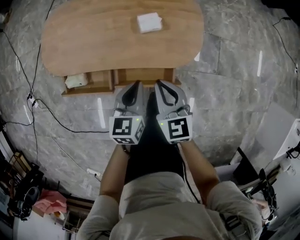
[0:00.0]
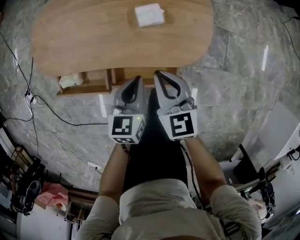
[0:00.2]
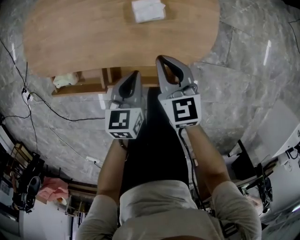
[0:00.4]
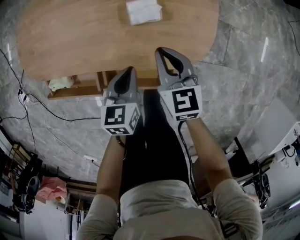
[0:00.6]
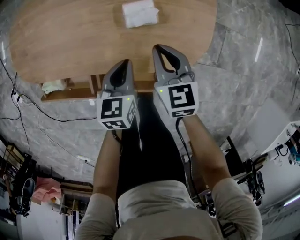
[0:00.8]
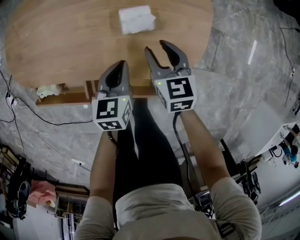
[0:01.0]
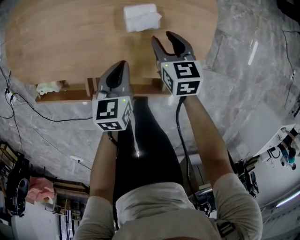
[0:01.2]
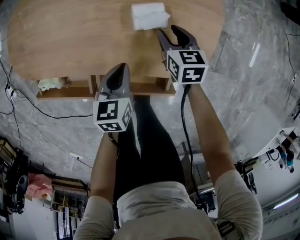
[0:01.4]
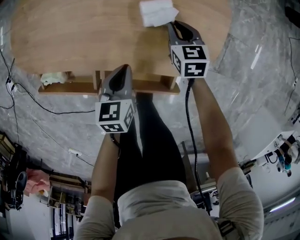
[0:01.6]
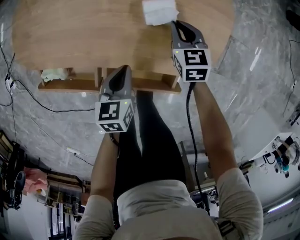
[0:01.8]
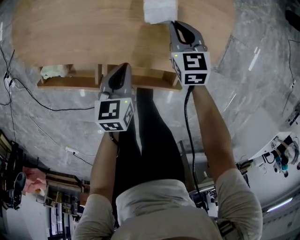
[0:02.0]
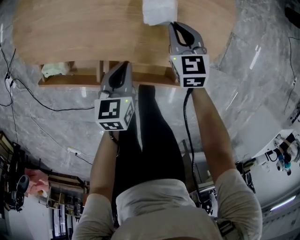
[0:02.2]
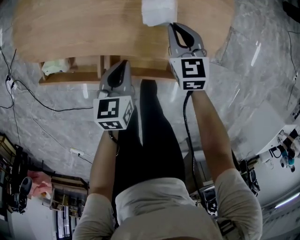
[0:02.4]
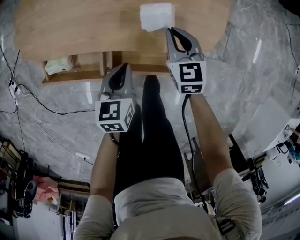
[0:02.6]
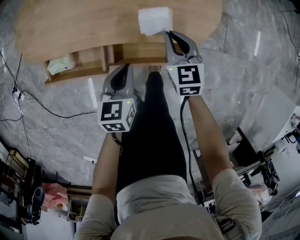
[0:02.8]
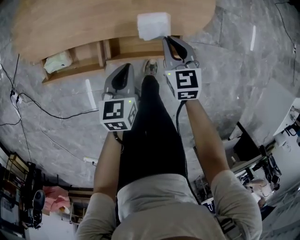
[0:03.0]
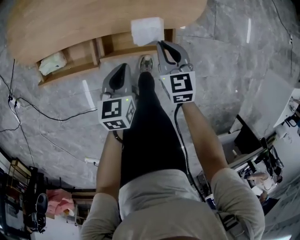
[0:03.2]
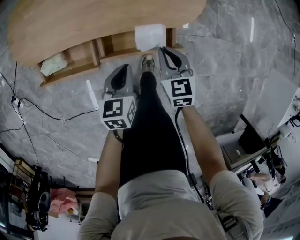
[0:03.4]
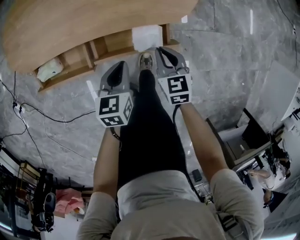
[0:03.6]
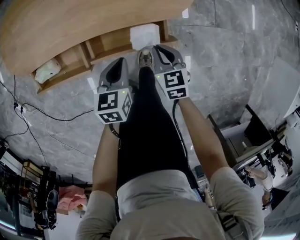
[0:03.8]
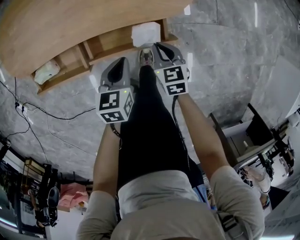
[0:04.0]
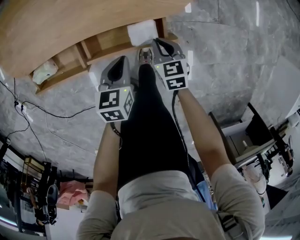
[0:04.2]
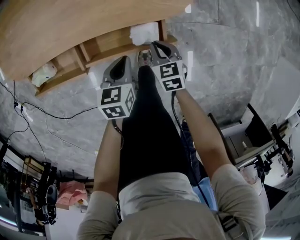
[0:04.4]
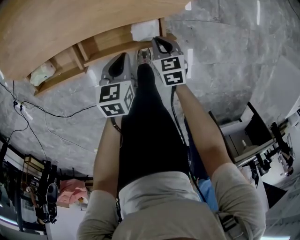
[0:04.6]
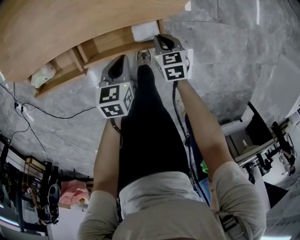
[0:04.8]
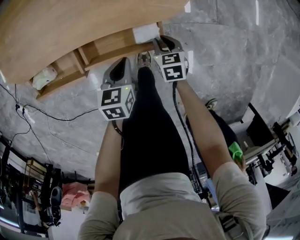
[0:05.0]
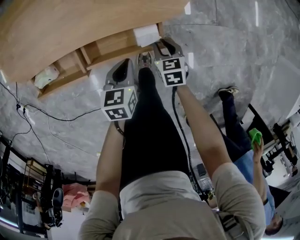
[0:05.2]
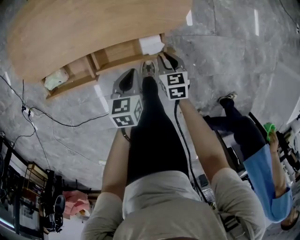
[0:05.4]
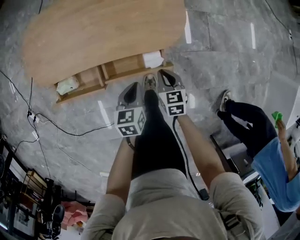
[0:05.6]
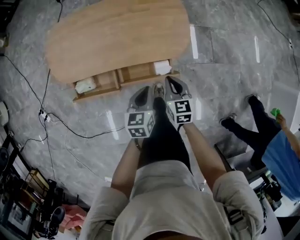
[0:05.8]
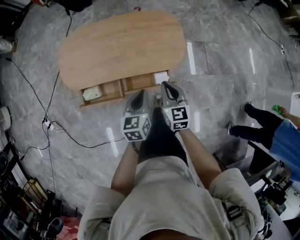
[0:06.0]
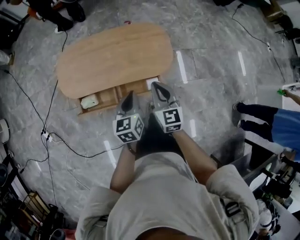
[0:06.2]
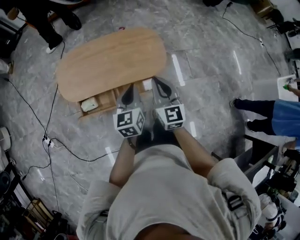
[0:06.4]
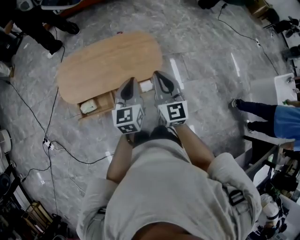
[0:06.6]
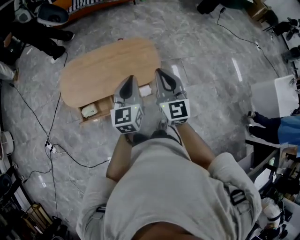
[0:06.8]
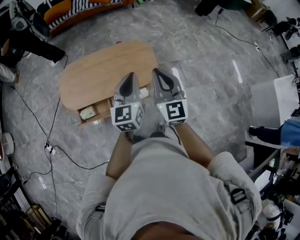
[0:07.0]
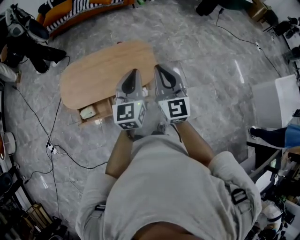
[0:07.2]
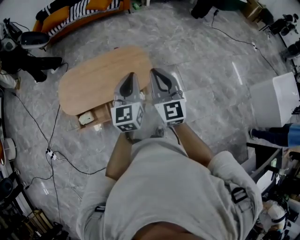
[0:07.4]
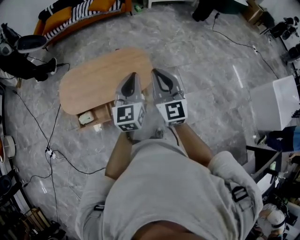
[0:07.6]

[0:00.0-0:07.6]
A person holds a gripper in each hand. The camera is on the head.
0:00.0 to 0:01.6: The left gripper is displaced downward and forward by approximately 20 cm. The right gripper moves downward and forward, about 35 cm, and opens and closes again.
0:01.6 to 0:03.0: The right gripper goes some 20 cm backward and upward. The left gripper goes some 15 cm backward.
0:03.0 to 0:04.6: The right gripper heads downward, to the right and backward, covering roughly 20 cm. Meanwhile the left gripper is displaced to the right and downward by some 10 cm.
0:04.6 to 0:06.0: The two grippers go roughly 30 cm upward. The right gripper changes its angle by roughly 30 degrees, and opens and closes again. Meanwhile the left gripper rotates some 20 degrees.
0:06.0 to 0:07.6: The left gripper is displaced upward and to the right by about 30 cm, and rotates roughly 30 degrees, while the right gripper moves upward, some 30 cm, and turns by approximately 30 degrees.

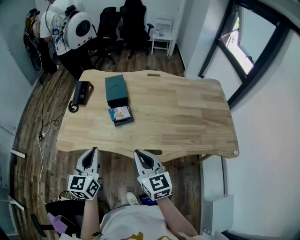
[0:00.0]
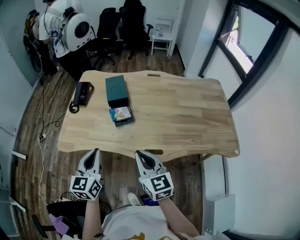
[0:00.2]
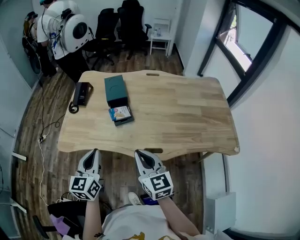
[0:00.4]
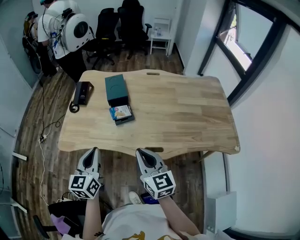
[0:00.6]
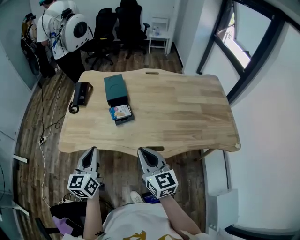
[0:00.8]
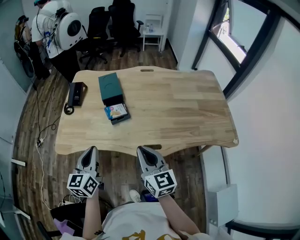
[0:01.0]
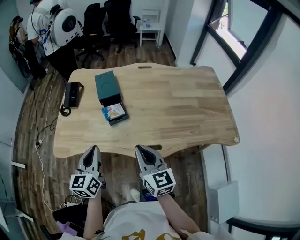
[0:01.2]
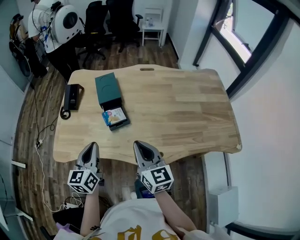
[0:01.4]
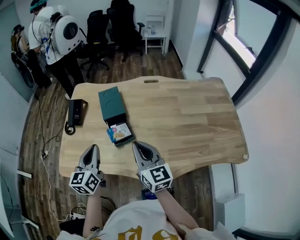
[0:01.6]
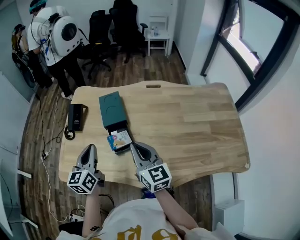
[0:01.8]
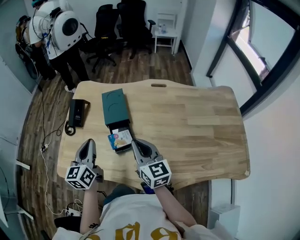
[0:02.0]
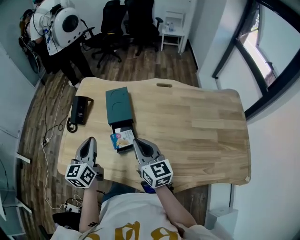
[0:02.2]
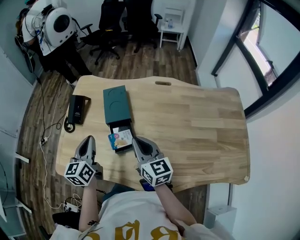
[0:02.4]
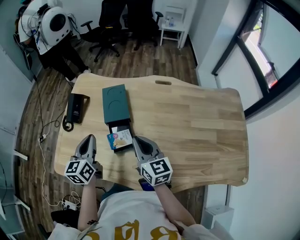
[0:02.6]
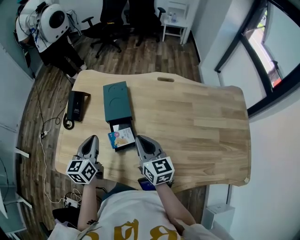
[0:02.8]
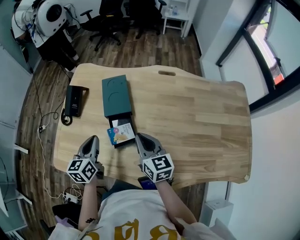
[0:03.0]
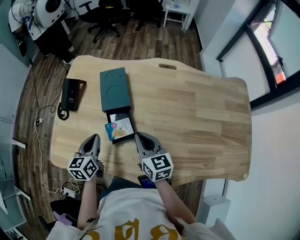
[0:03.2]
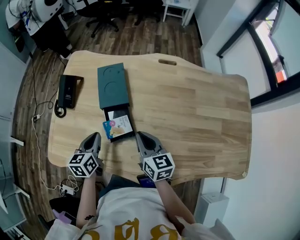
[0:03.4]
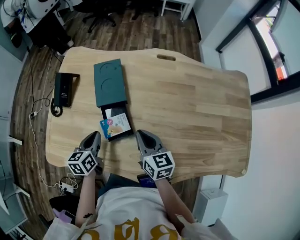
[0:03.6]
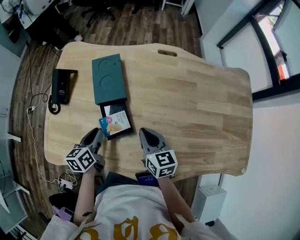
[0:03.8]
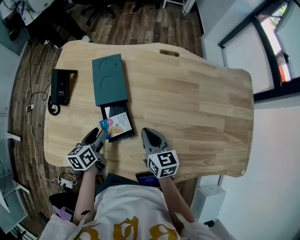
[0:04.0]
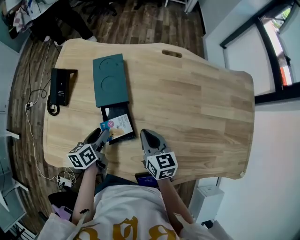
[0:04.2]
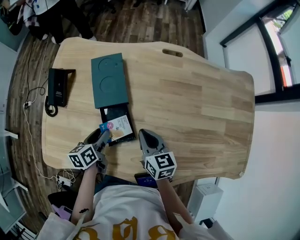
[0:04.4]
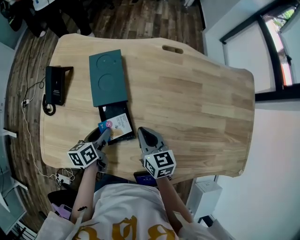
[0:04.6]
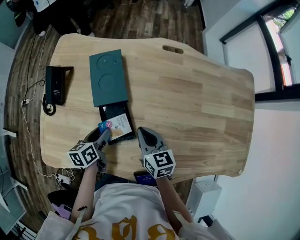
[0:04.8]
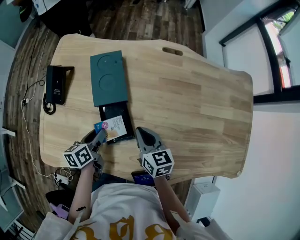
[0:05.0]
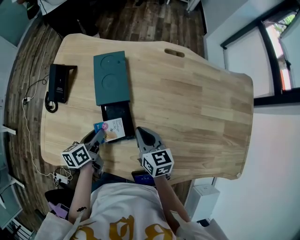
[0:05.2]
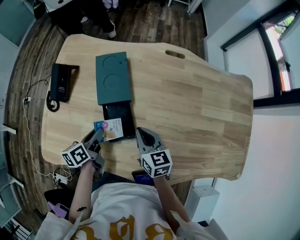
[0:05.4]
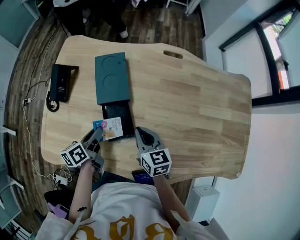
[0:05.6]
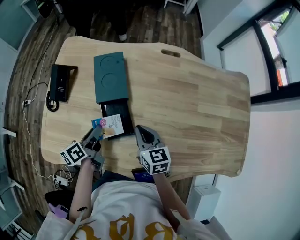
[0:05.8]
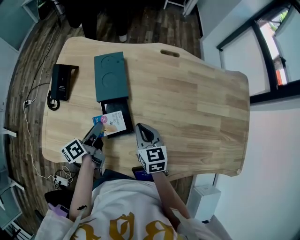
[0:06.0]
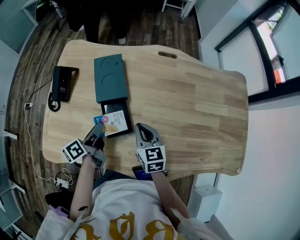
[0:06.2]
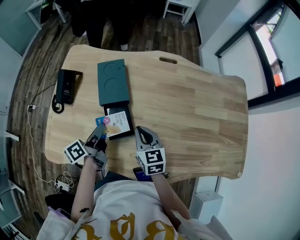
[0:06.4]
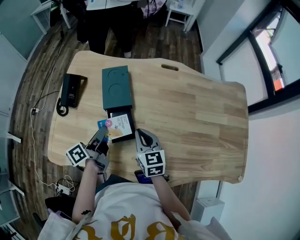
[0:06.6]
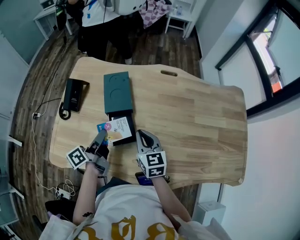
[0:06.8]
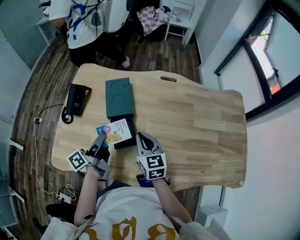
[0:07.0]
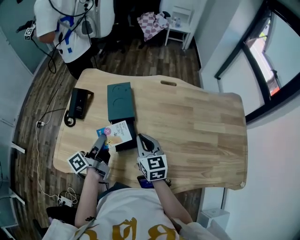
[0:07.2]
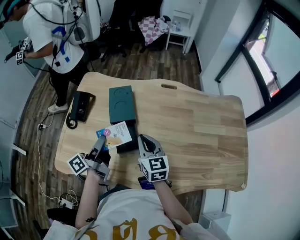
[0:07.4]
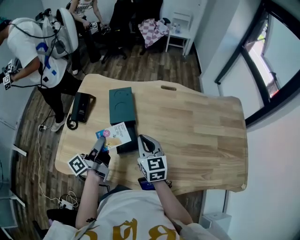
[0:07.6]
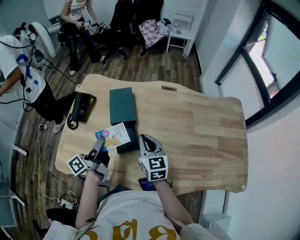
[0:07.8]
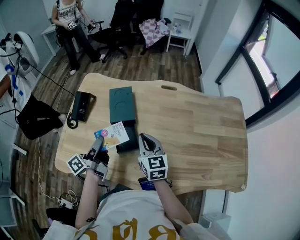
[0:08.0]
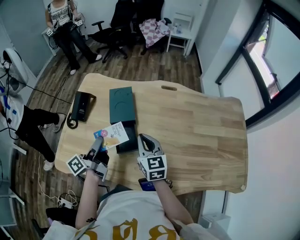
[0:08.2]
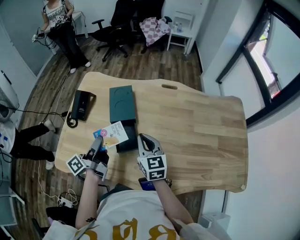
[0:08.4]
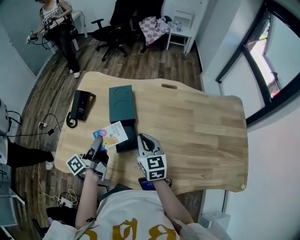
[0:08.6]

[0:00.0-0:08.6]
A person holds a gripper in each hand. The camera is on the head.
0:00.0 to 0:01.4: Both grippers travel together forward, roughly 10 cm.
0:01.4 to 0:02.8: The two grippers go some 20 cm forward.
0:02.8 to 0:04.4: Both grippers travel together downward, about 15 cm. The left gripper rotates some 30 degrees, and opens.
0:04.4 to 0:05.8: The left gripper turns by some 20 degrees, and closes up.
0:05.8 to 0:07.2: Both grippers travel together upward, approximately 10 cm. The left gripper swivels some 30 degrees.
0:07.2 to 0:08.6: The grippers stay close to where they were, moving slightly.

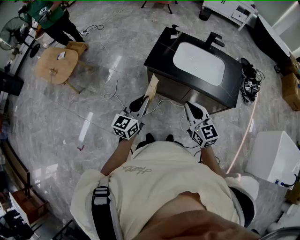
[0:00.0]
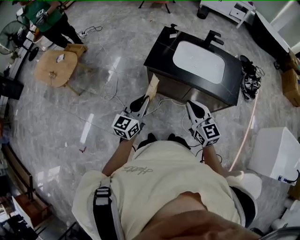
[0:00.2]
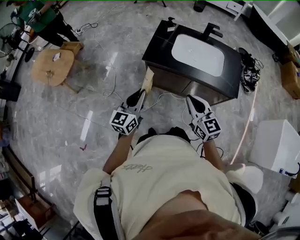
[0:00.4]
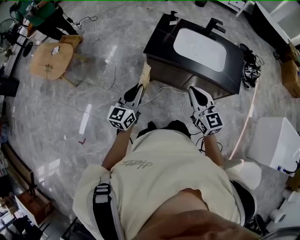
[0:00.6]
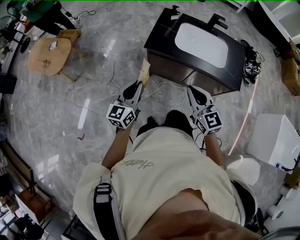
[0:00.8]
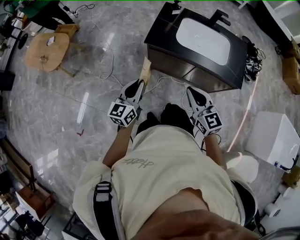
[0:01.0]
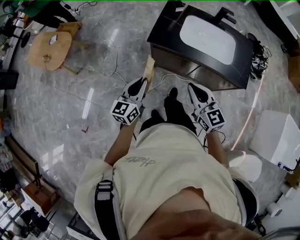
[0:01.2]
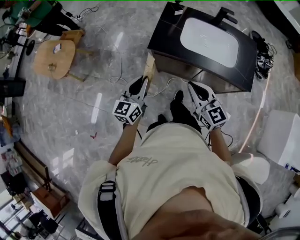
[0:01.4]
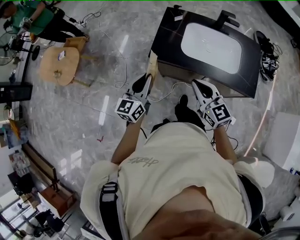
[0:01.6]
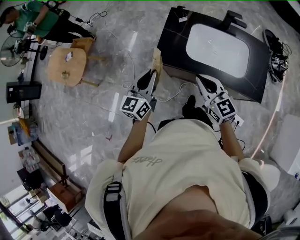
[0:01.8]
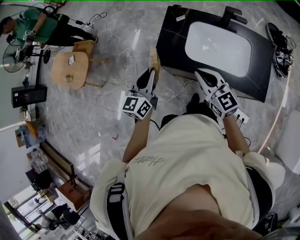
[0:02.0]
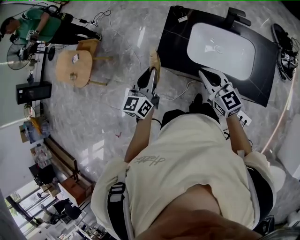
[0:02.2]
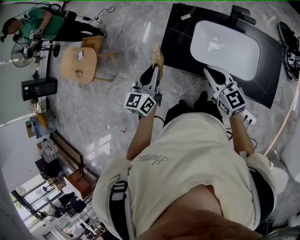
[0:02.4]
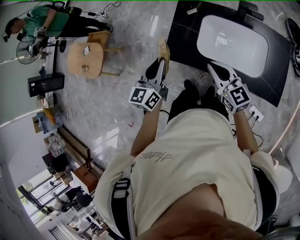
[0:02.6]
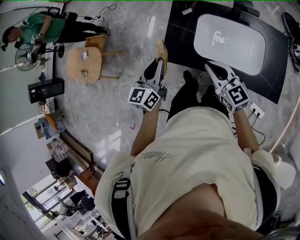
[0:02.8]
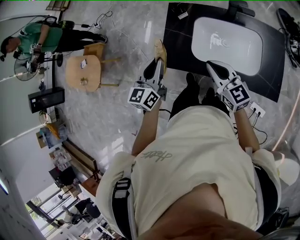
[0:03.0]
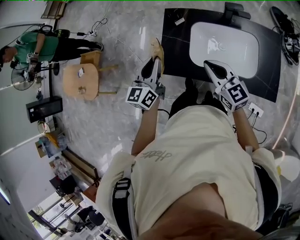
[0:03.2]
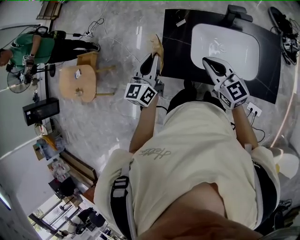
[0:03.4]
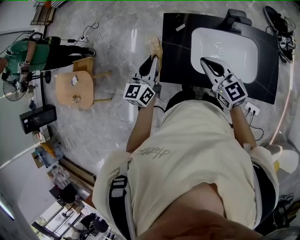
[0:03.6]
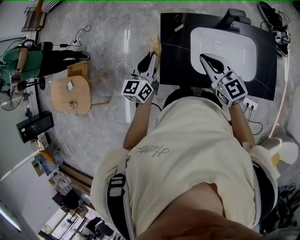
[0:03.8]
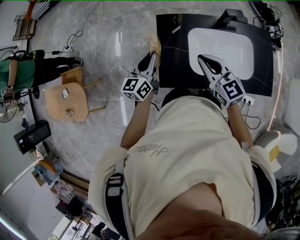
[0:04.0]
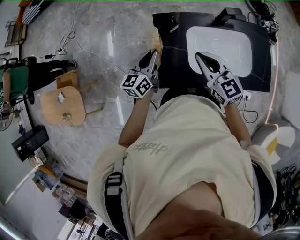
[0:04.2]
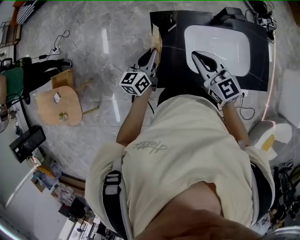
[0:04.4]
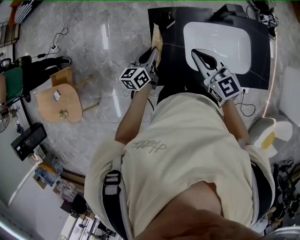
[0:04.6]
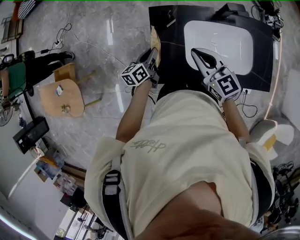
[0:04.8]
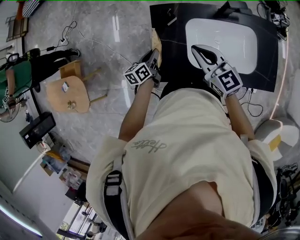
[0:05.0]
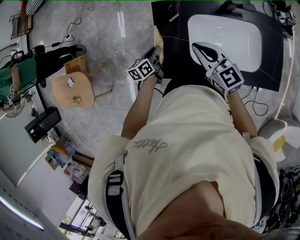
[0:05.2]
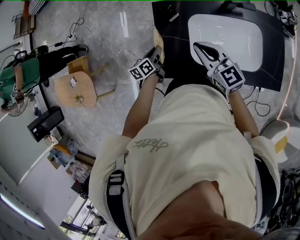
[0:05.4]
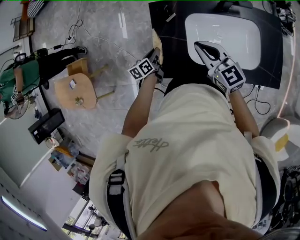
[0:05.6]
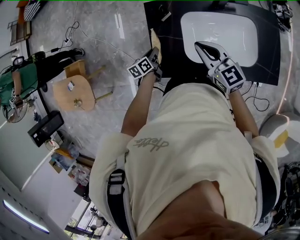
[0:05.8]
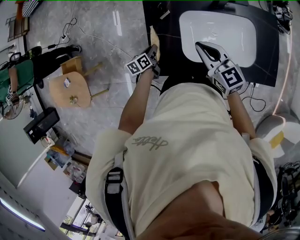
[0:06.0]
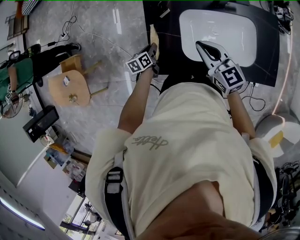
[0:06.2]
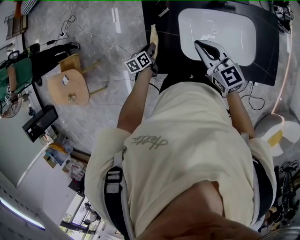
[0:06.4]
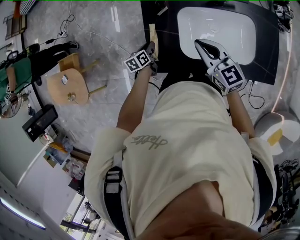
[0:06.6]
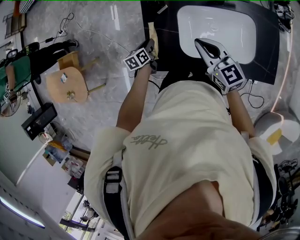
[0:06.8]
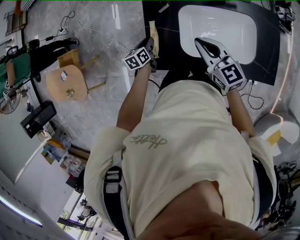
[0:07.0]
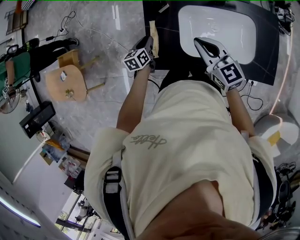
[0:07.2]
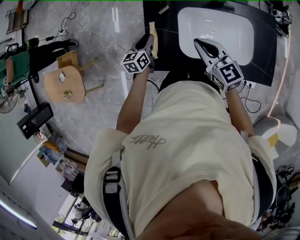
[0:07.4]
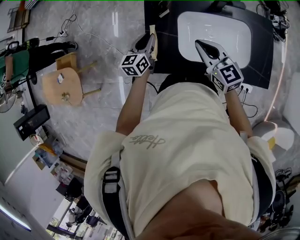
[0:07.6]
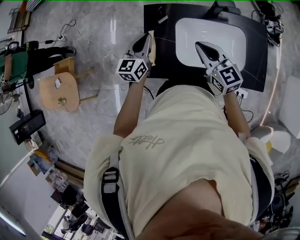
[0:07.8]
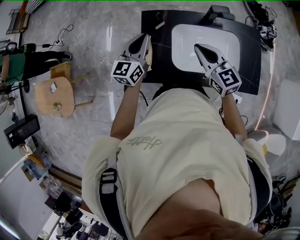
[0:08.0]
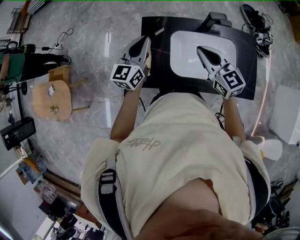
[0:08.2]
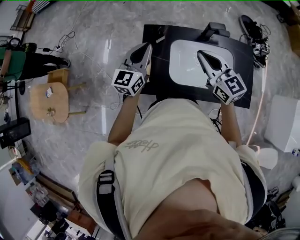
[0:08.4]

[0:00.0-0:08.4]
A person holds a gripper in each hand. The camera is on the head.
0:00.0 to 0:01.4: The grippers both shift forward by about 10 cm.
0:01.4 to 0:02.8: The two grippers go some 25 cm forward and to the right.
0:02.8 to 0:04.2: The left gripper shifts some 25 cm forward, and turns by some 30 degrees; the right gripper goes some 20 cm forward and to the left, and turns by approximately 20 degrees.
0:04.2 to 0:05.6: The left gripper moves downward, about 20 cm, and swivels some 30 degrees. The right gripper travels to the right and downward by some 10 cm.
0:05.6 to 0:07.0: There are only small adjustments of the grippers.
0:07.0 to 0:08.4: The right gripper heads upward, covering some 15 cm; the left gripper heads upward, covering roughly 30 cm, and tips its fingers upward by some 40 degrees.
